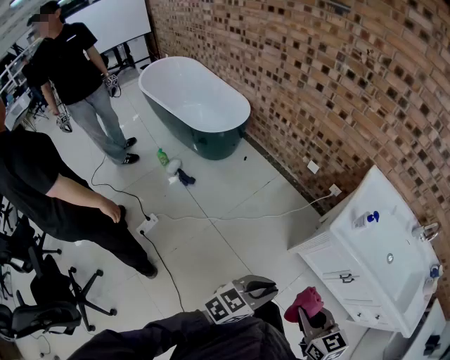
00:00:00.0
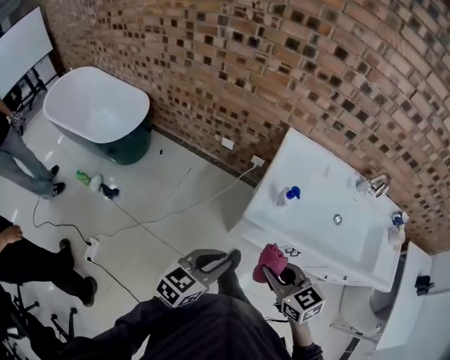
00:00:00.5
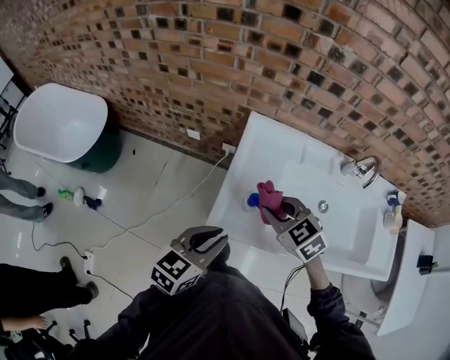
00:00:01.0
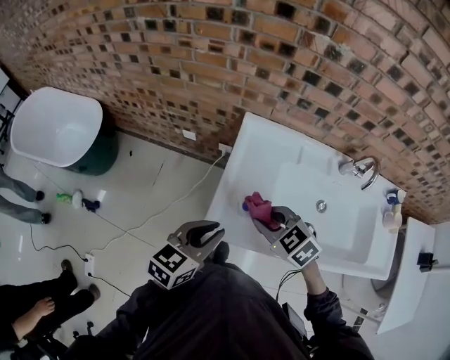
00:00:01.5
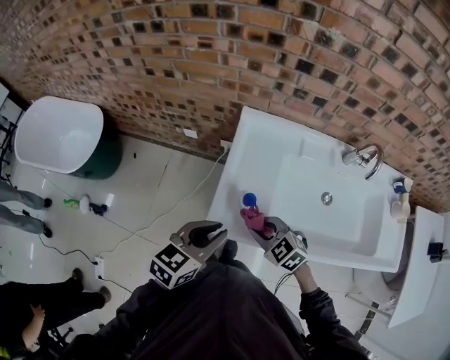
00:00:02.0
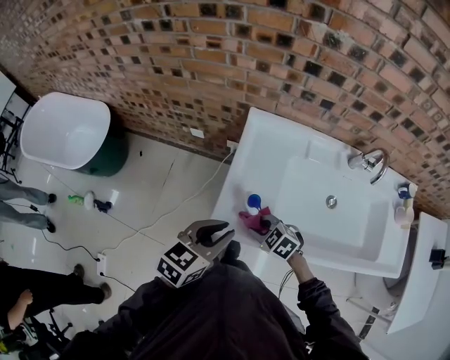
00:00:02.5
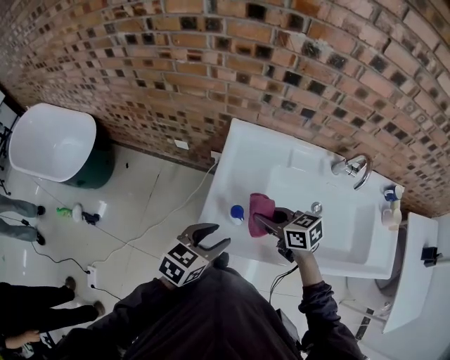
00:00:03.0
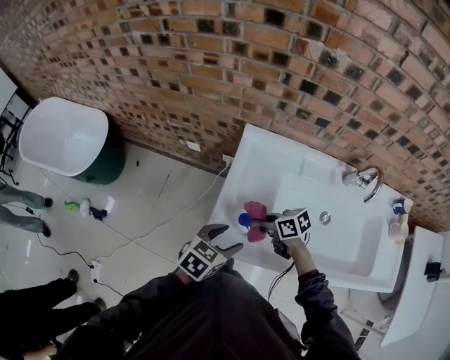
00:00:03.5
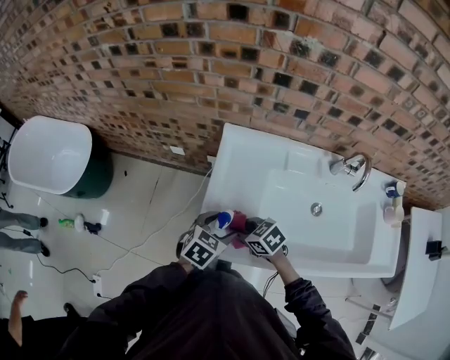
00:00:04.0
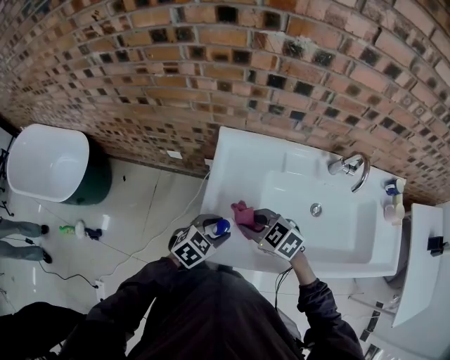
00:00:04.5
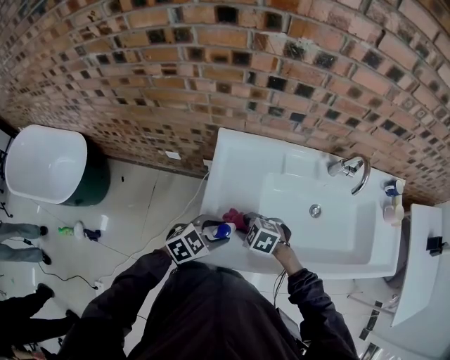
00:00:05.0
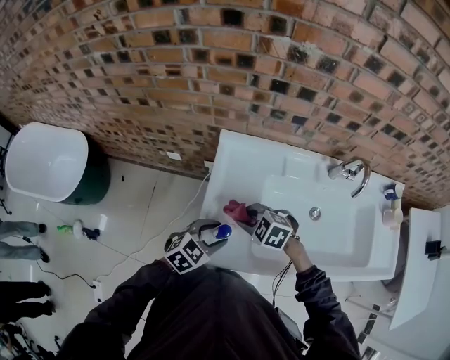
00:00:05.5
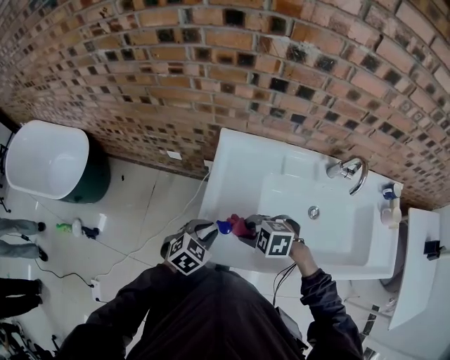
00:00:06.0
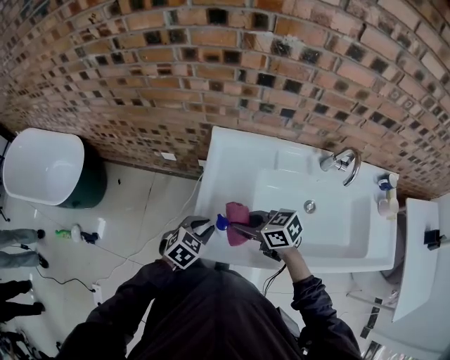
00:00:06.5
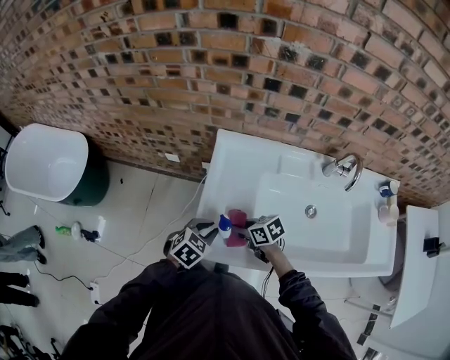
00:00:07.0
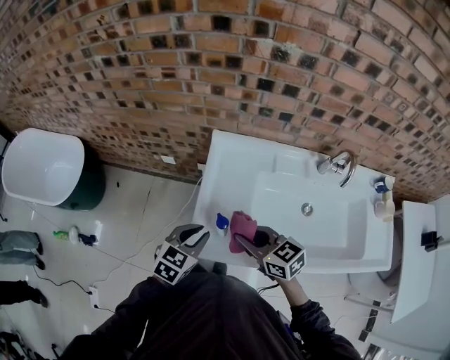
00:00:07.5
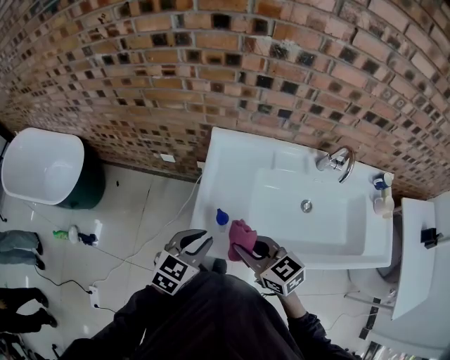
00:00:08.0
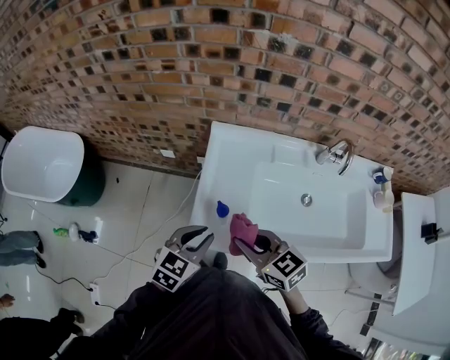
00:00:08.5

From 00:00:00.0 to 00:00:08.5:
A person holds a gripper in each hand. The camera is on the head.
From 00:00:00.0 to 00:00:02.0: Both grippers move forward and to the right, roughly 40 cm. The right gripper changes its angle by about 20 degrees.
From 00:00:02.0 to 00:00:04.0: The right gripper goes up and down, roughly 10 cm each way, reversing 2 times, and rotates about 30 degrees. The left gripper is displaced downward by about 10 cm, swivels about 20 degrees, and opens its fingers.
From 00:00:04.0 to 00:00:06.5: The right gripper swings up and down, roughly 10 cm each way, with 2 reversals. Meanwhile the left gripper closes.
From 00:00:06.5 to 00:00:08.5: The left gripper is displaced upward and backward by some 10 cm. Meanwhile the right gripper is displaced backward and upward by some 10 cm, and rotates about 30 degrees.

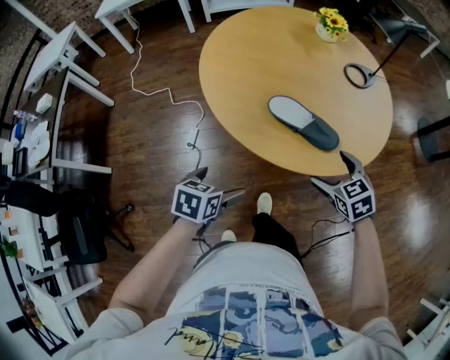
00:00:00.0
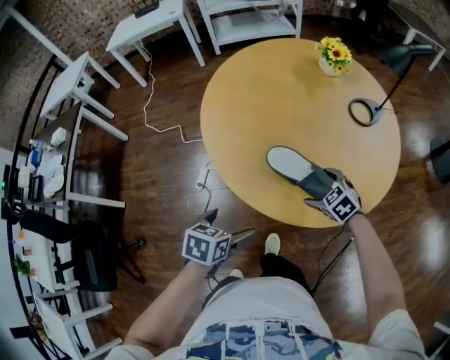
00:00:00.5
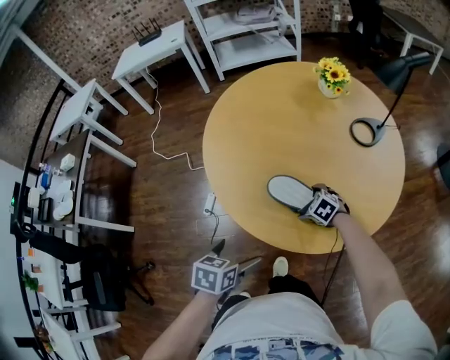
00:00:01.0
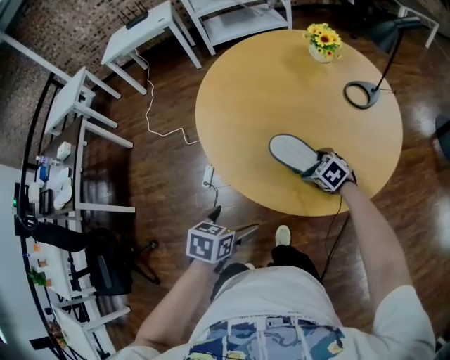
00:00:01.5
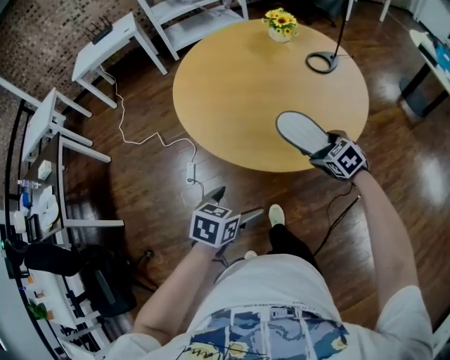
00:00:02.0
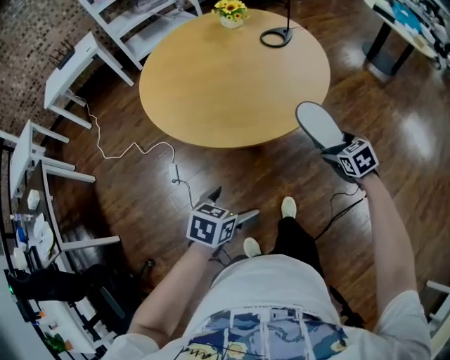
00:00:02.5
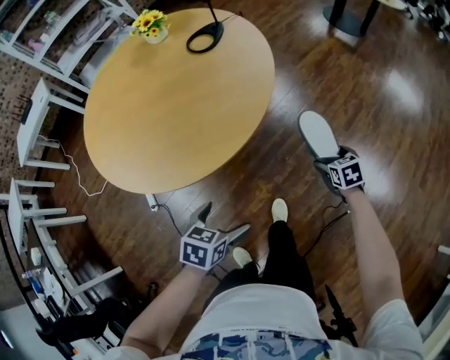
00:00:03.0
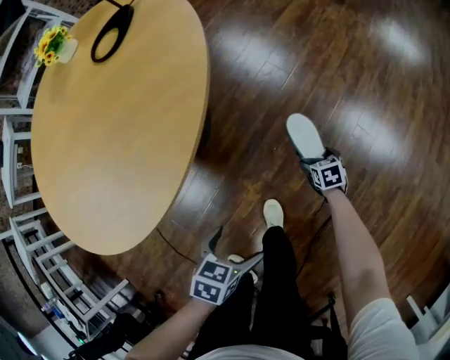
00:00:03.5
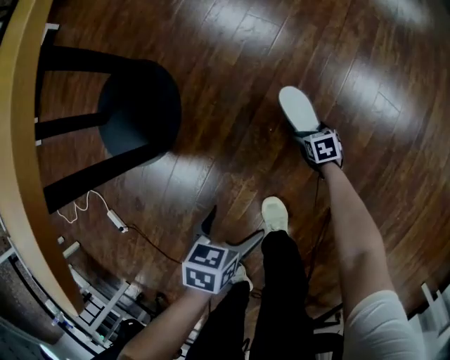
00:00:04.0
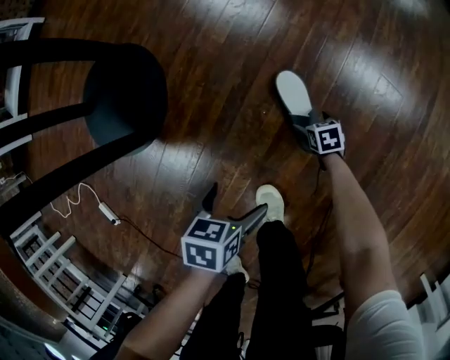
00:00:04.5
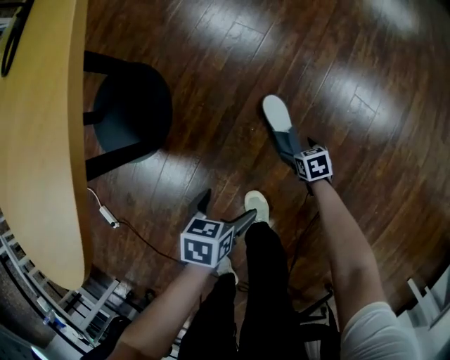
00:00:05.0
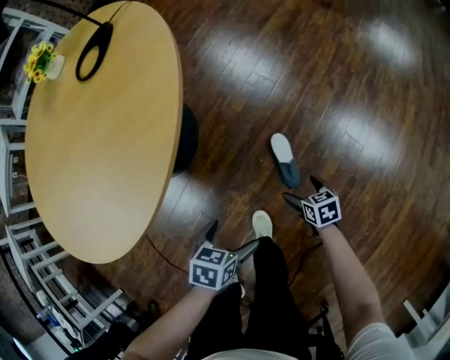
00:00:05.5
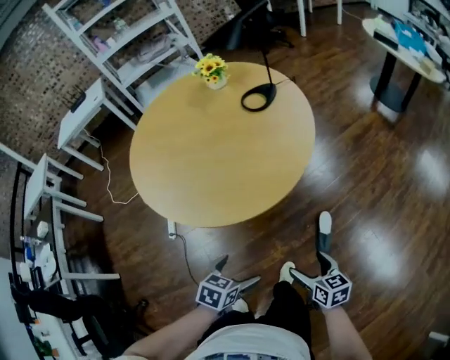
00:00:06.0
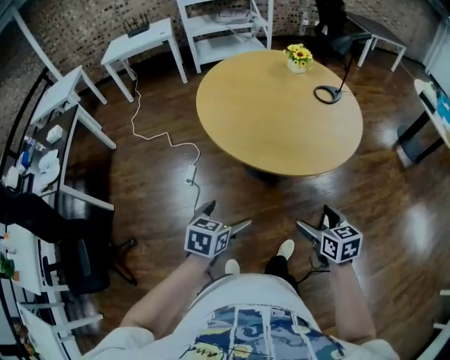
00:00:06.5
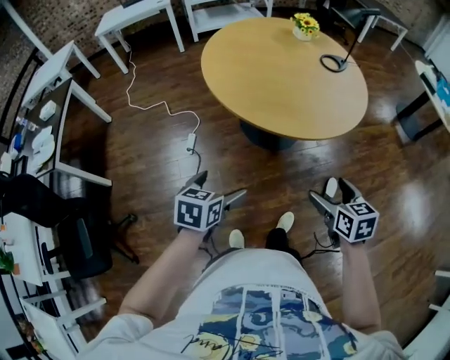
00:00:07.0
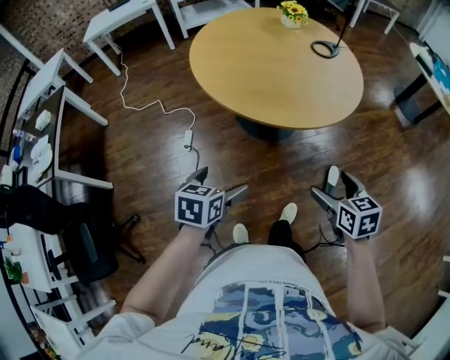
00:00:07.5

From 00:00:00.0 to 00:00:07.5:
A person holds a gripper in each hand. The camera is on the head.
From 00:00:00.0 to 00:00:02.0: The grippers both shift to the right by roughly 5 cm. The left gripper travels forward and back again, approximately 10 cm each way. The right gripper reaches roughly 20 cm forward, then returns.
From 00:00:02.0 to 00:00:04.0: The two grippers travel together, some 50 cm. Both grippers move downward, about 70 cm. The left gripper changes its angle by approximately 40 degrees, while the right gripper twists about 70 degrees clockwise, seen from behind.
From 00:00:04.0 to 00:00:05.5: The left gripper shifts about 20 cm upward. Meanwhile the right gripper moves upward, approximately 35 cm.
From 00:00:05.5 to 00:00:07.5: The two grippers travel together, roughly 50 cm. The left gripper rotates some 50 degrees; the right gripper is displaced upward by roughly 50 cm, and rotates some 40 degrees.

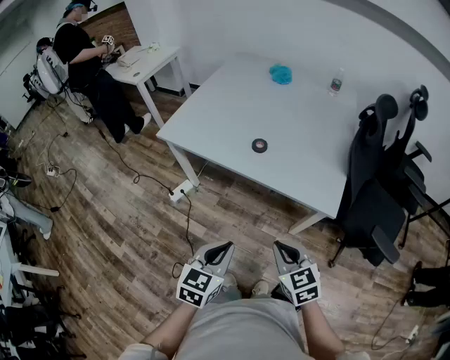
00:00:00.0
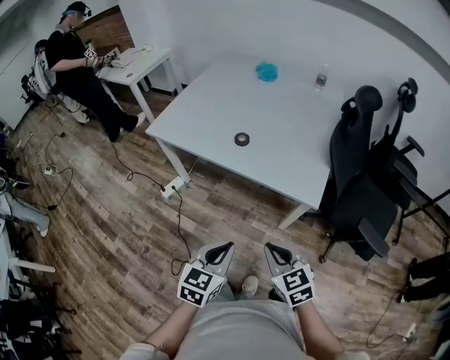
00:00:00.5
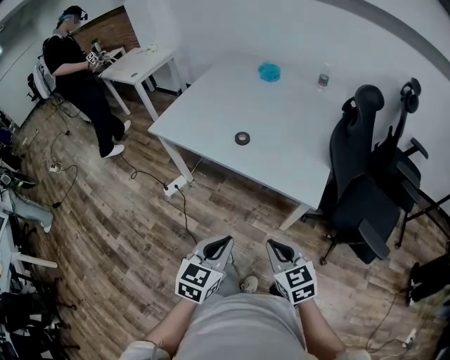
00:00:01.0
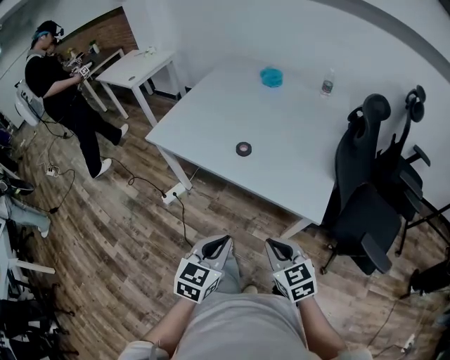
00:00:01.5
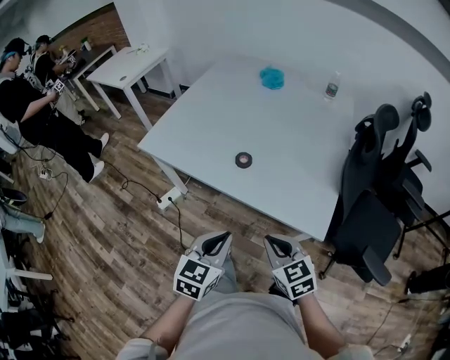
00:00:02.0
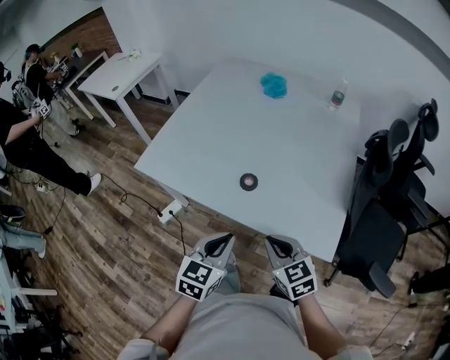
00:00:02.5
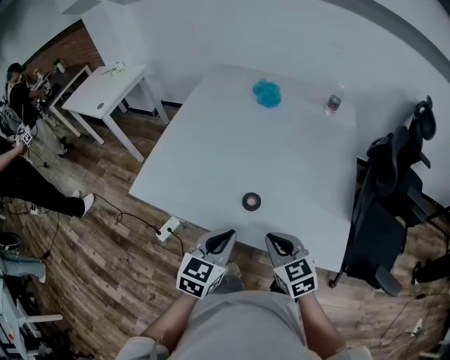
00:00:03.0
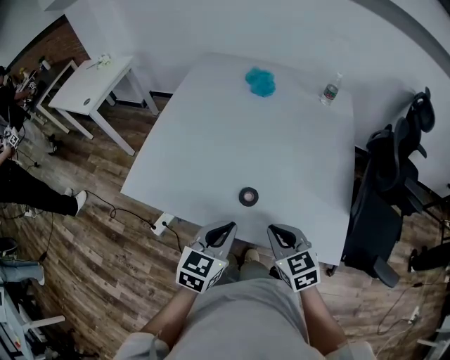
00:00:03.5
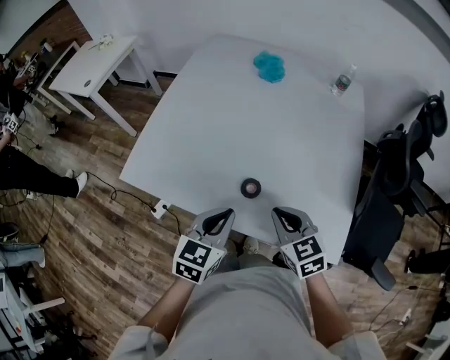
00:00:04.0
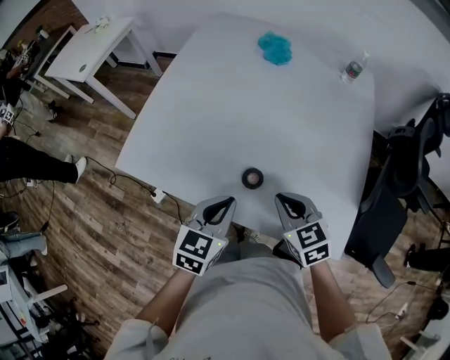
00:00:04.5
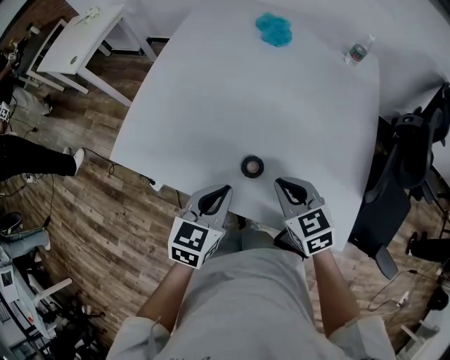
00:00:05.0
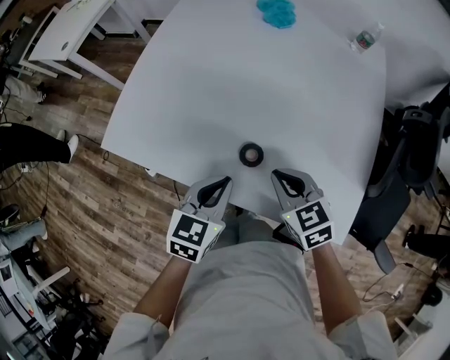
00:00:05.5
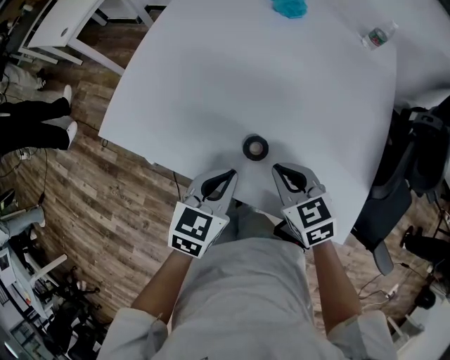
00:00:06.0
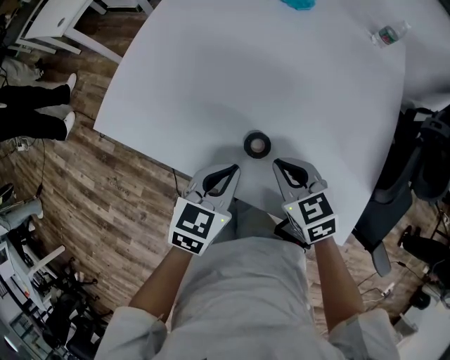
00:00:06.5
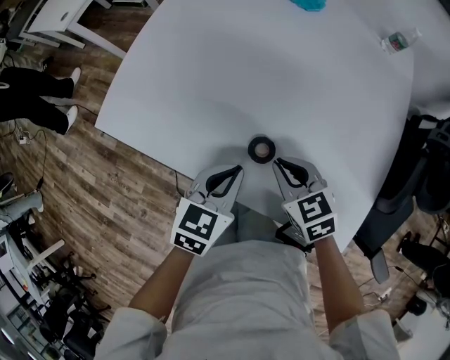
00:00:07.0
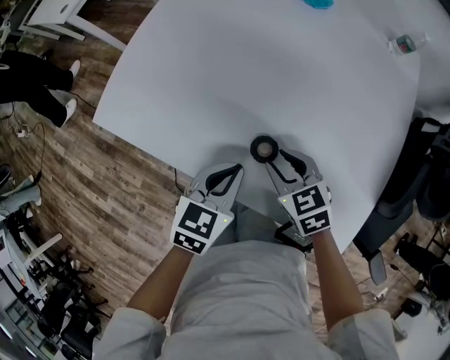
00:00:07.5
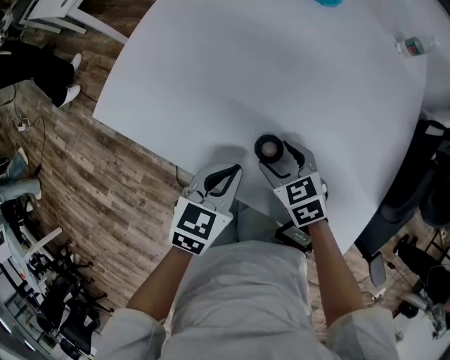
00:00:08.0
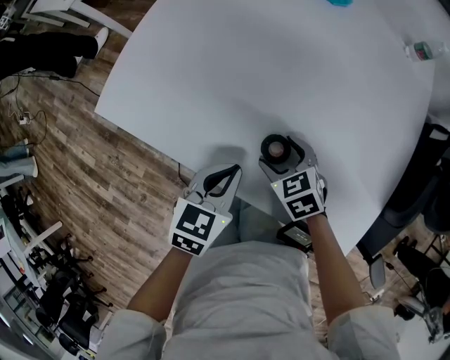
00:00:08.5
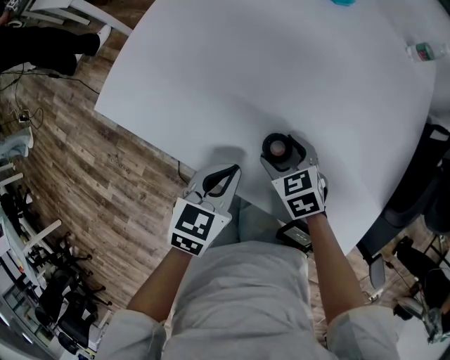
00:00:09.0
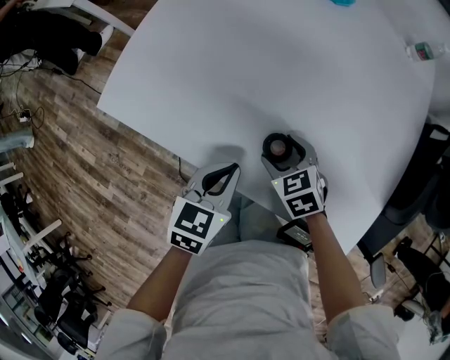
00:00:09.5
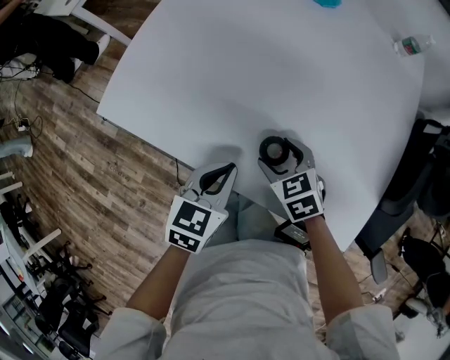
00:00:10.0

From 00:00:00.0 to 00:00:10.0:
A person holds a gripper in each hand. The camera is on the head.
From 00:00:00.0 to 00:00:02.0: The right gripper shifts about 10 cm forward. Meanwhile the left gripper heads forward and to the right, covering some 15 cm.
From 00:00:02.0 to 00:00:04.0: The grippers both shift forward by roughly 25 cm.
From 00:00:04.0 to 00:00:06.0: Both grippers travel together downward, some 5 cm.
From 00:00:06.0 to 00:00:08.0: The right gripper goes approximately 10 cm downward, and opens up, while the left gripper is displaced downward by roughly 5 cm.
From 00:00:08.0 to 00:00:10.0: The grippers make only small movements.
